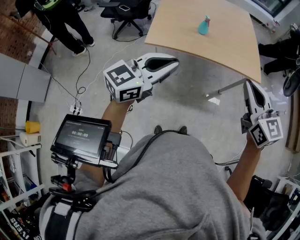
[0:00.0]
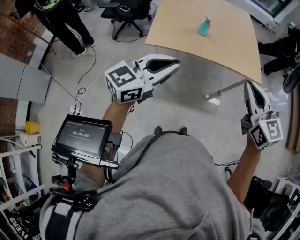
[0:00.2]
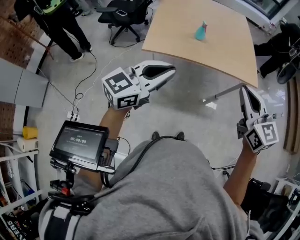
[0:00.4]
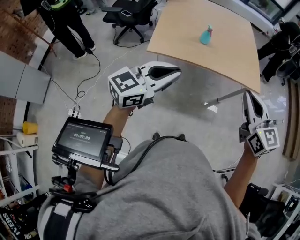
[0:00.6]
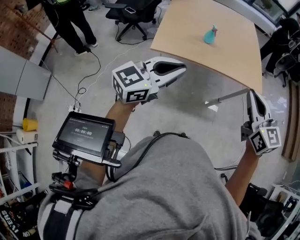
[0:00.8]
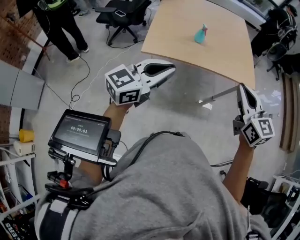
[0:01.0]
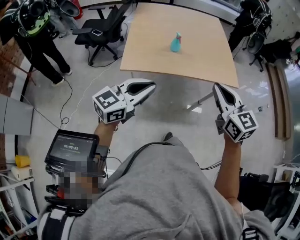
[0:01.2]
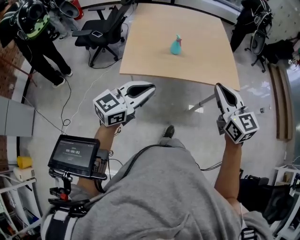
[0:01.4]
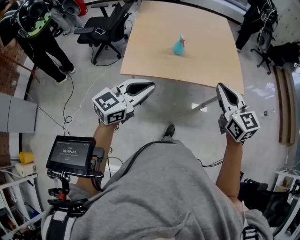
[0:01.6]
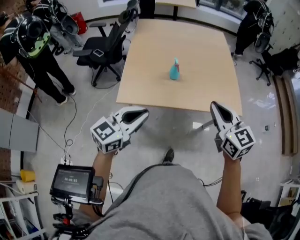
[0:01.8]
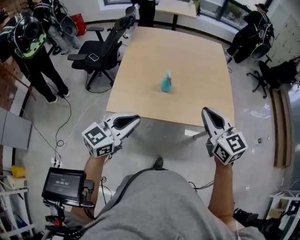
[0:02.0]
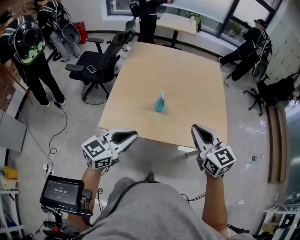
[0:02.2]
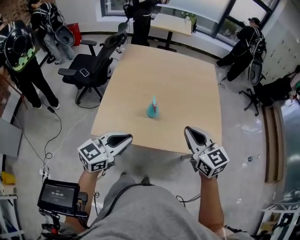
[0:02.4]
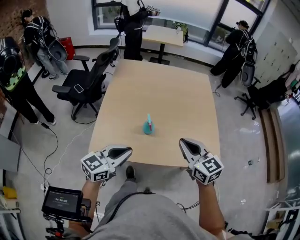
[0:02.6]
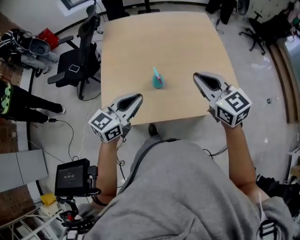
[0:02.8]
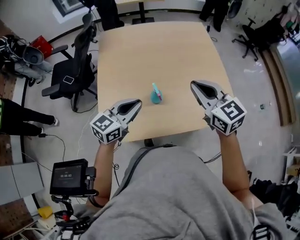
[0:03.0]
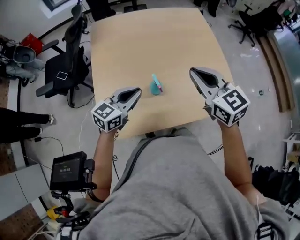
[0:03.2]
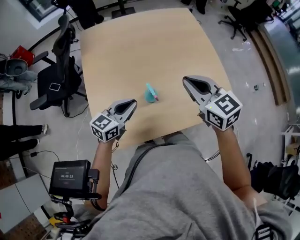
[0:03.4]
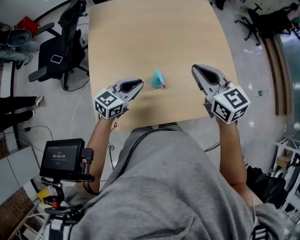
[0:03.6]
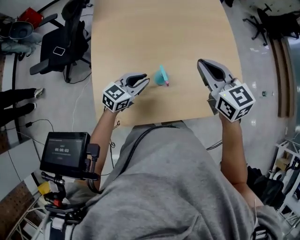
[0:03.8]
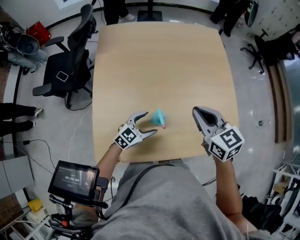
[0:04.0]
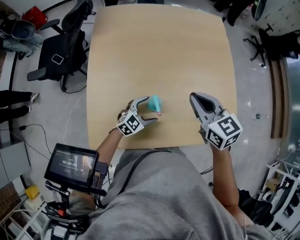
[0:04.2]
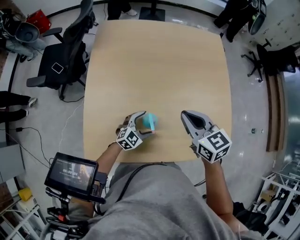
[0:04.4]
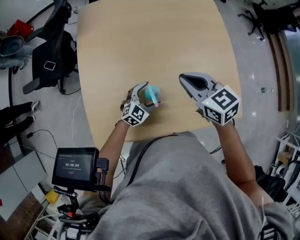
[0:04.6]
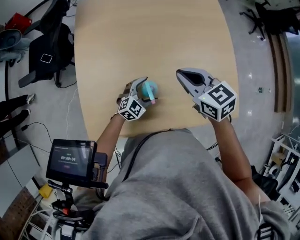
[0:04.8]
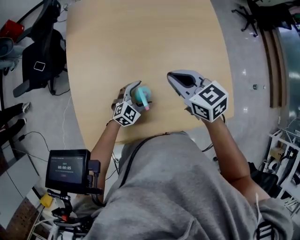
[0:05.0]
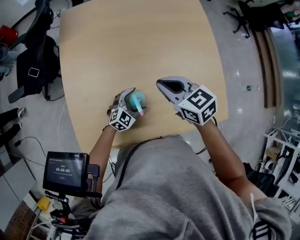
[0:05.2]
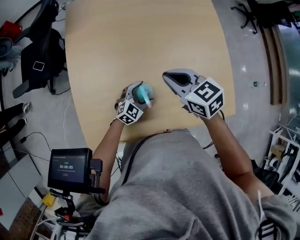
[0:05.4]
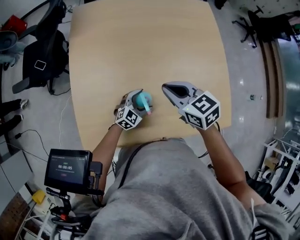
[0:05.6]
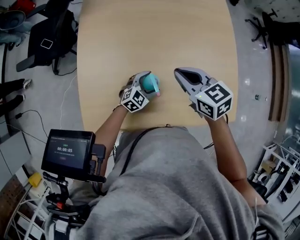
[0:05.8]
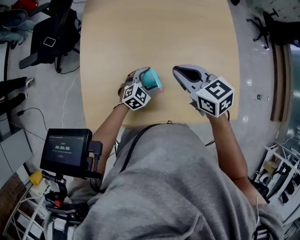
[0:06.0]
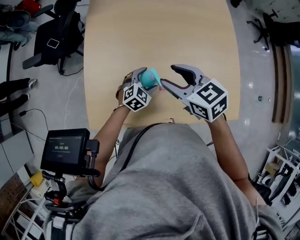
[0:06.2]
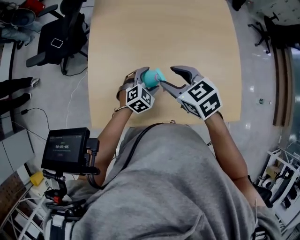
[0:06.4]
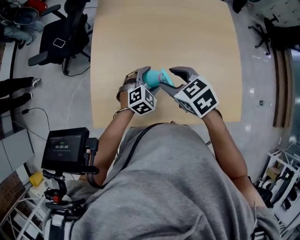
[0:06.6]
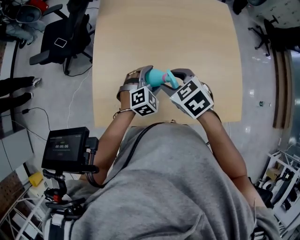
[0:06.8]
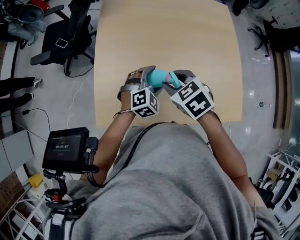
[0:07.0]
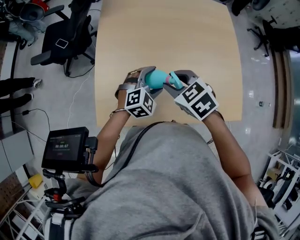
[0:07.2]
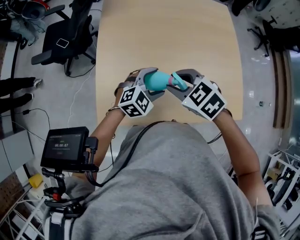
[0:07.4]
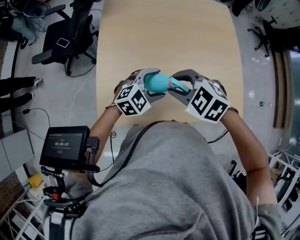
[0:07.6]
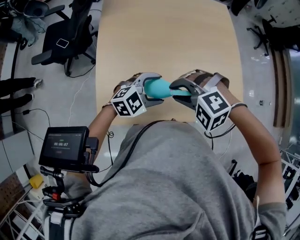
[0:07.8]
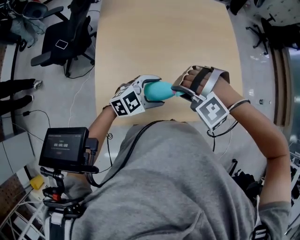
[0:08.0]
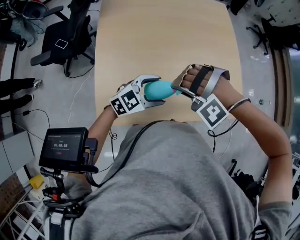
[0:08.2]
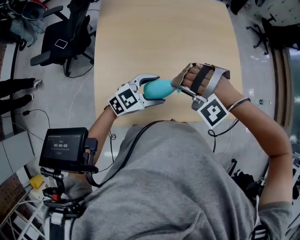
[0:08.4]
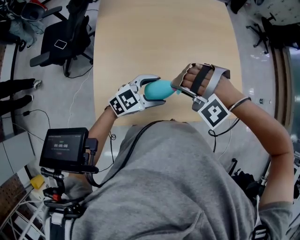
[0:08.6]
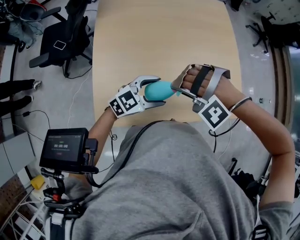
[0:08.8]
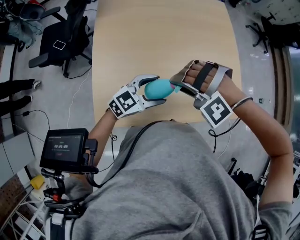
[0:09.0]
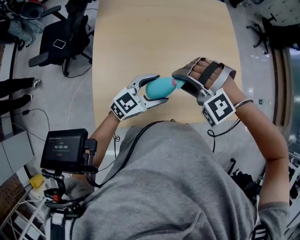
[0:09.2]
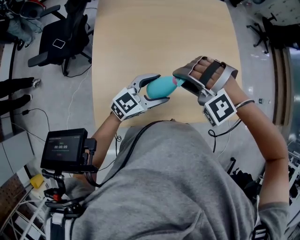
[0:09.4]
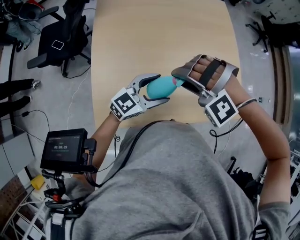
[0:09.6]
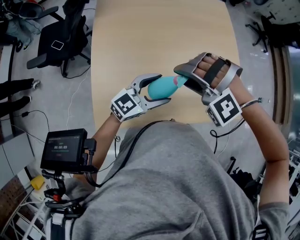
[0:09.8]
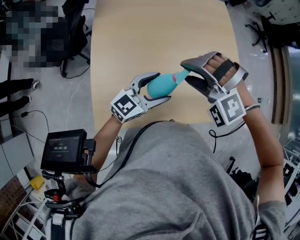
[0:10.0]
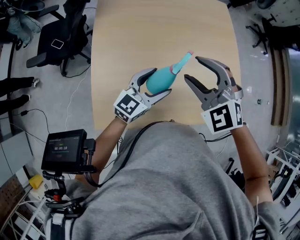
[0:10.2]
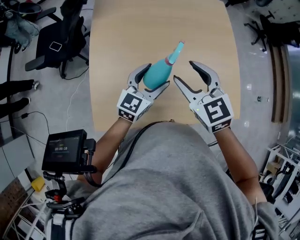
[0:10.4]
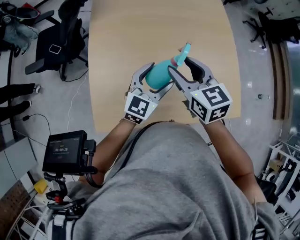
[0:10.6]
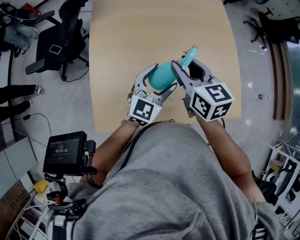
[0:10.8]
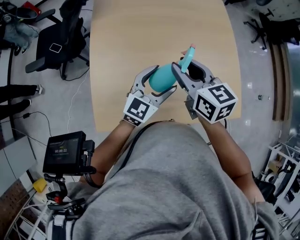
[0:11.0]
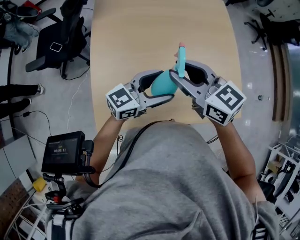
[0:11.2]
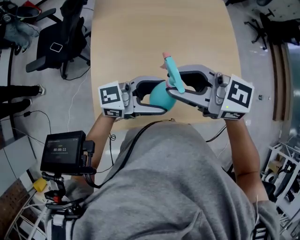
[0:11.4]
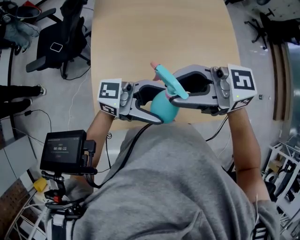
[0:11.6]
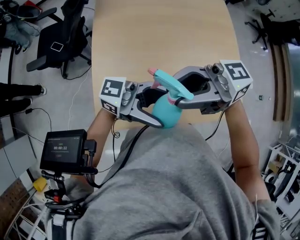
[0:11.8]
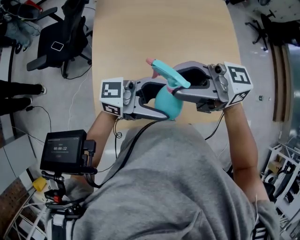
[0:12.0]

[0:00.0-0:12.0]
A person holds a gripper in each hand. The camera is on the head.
0.0 to 1.6 s: Both grippers travel together forward, some 15 cm.
1.6 to 3.0 s: Both grippers move forward, about 35 cm.
3.0 to 4.4 s: The right gripper shifts approximately 15 cm forward and downward. Meanwhile the left gripper moves downward and forward, about 30 cm, changes its angle by roughly 30 degrees, and opens its fingers.
4.4 to 6.0 s: The right gripper moves some 5 cm.
6.0 to 7.6 s: The right gripper shifts by some 10 cm, rotates some 40 degrees, and opens up. The left gripper heads upward, covering about 15 cm.
7.6 to 9.0 s: The right gripper rolls counterclockwise, seen from behind, by approximately 70 degrees, while the left gripper turns by about 20 degrees.
9.0 to 10.4 s: The right gripper moves upward and forward, about 10 cm, and twists some 90 degrees clockwise, seen from behind; the left gripper moves forward, about 5 cm, and rotates roughly 30 degrees.
10.4 to 12.0 s: Both grippers travel together upward, about 10 cm. The left gripper tilts its fingers approximately 30 degrees upward, while the right gripper points its fingers approximately 40 degrees further upward.

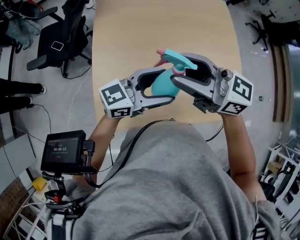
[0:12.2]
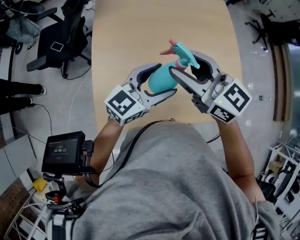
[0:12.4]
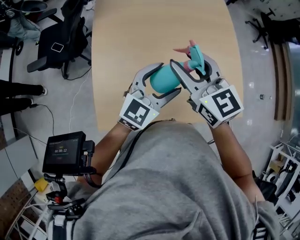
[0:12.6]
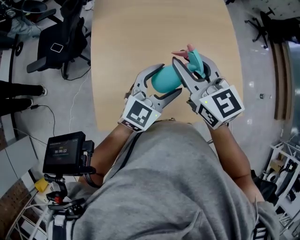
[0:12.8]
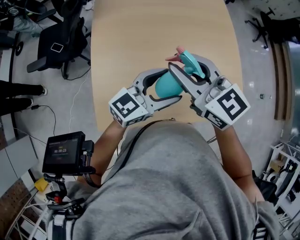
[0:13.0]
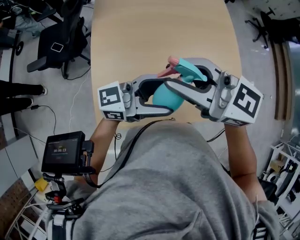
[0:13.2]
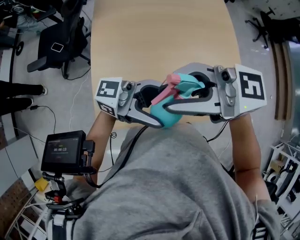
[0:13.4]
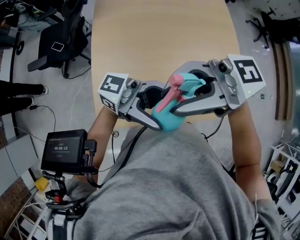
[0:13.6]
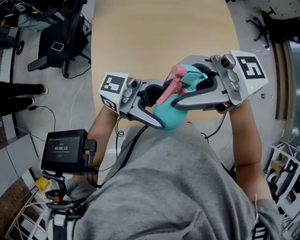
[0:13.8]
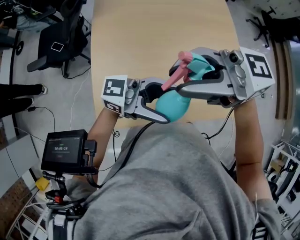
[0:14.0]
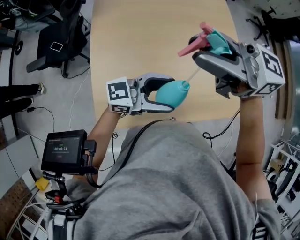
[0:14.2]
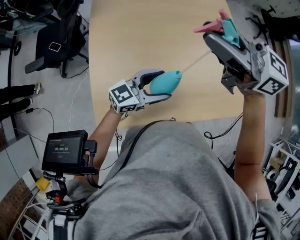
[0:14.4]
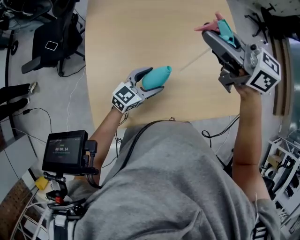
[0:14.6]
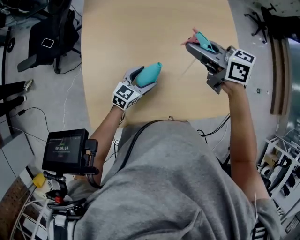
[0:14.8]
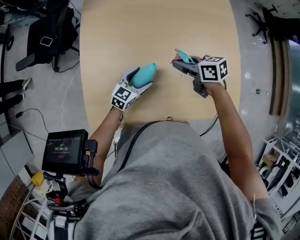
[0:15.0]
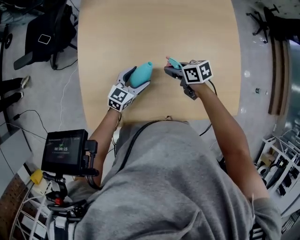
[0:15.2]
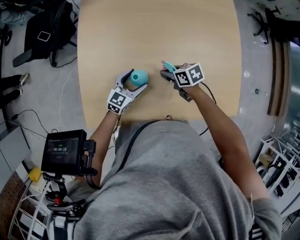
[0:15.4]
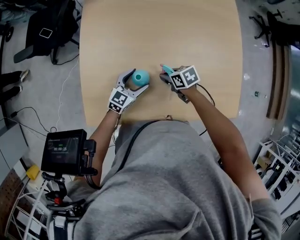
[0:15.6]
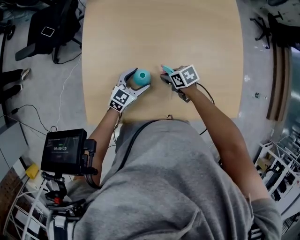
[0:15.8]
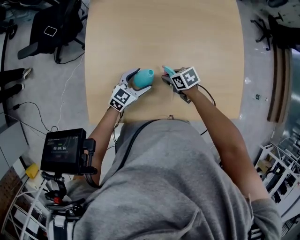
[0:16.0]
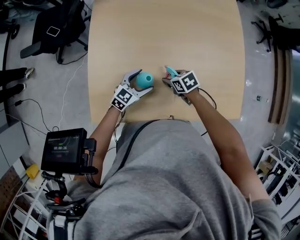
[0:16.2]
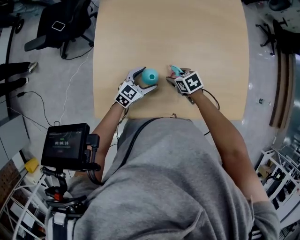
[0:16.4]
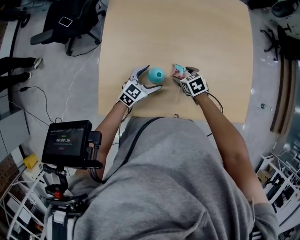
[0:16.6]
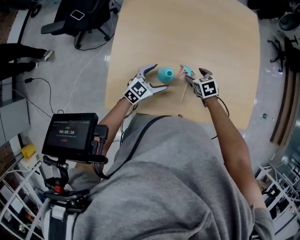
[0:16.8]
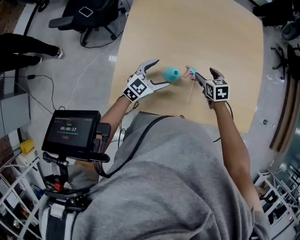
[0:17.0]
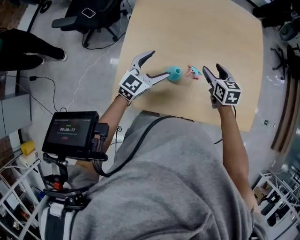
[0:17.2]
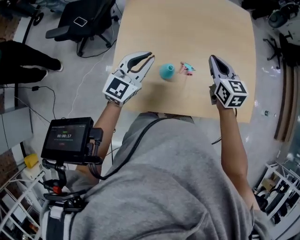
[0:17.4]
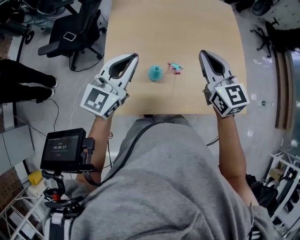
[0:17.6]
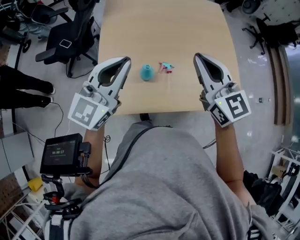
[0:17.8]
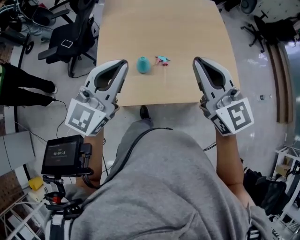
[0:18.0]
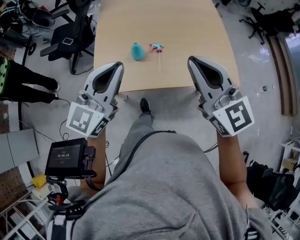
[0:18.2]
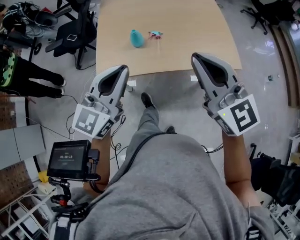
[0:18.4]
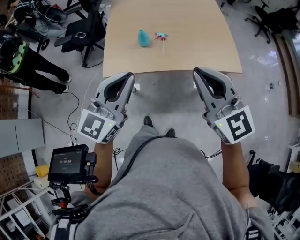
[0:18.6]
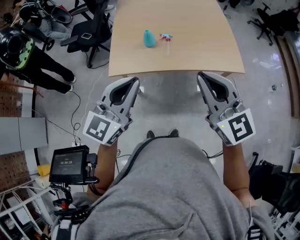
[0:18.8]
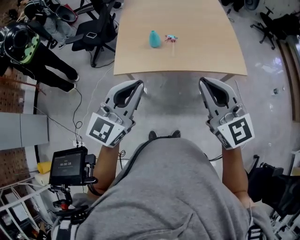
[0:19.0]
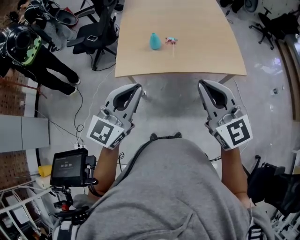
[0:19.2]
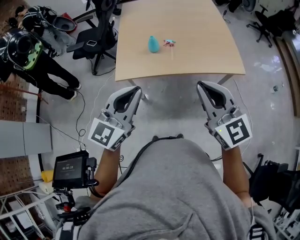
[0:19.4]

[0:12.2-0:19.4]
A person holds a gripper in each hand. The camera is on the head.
12.2 to 13.6 s: The right gripper shifts by approximately 10 cm, and changes its angle by roughly 40 degrees; the left gripper shifts by about 10 cm, and changes its angle by about 40 degrees.
13.6 to 15.0 s: The grippers both shift downward by approximately 30 cm. The right gripper points its fingers about 50 degrees further downward. Meanwhile the left gripper angles its fingers downward, by about 50 degrees.
15.0 to 16.6 s: The right gripper shifts approximately 15 cm downward, rotates some 30 degrees, and opens its fingers.
16.6 to 18.0 s: Both grippers move upward and backward, some 40 cm. The left gripper turns by approximately 30 degrees, and closes up; the right gripper angles its fingers upward, by about 60 degrees, and closes up.
18.0 to 19.4 s: The two grippers go approximately 30 cm backward.

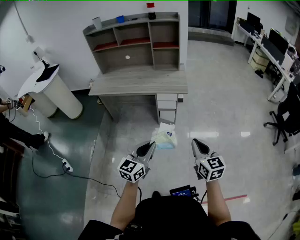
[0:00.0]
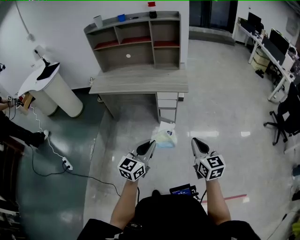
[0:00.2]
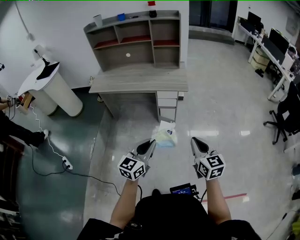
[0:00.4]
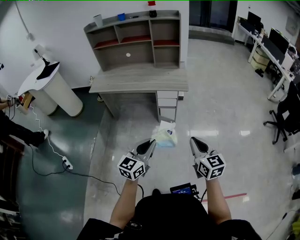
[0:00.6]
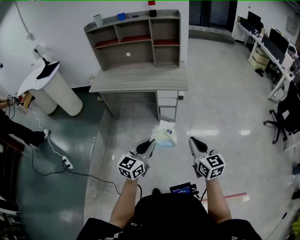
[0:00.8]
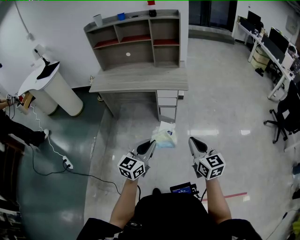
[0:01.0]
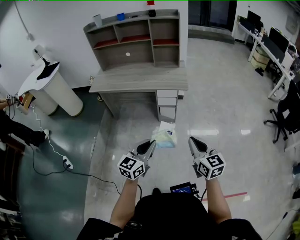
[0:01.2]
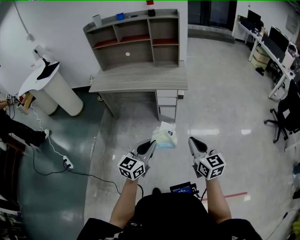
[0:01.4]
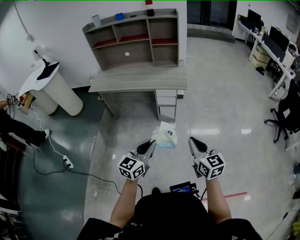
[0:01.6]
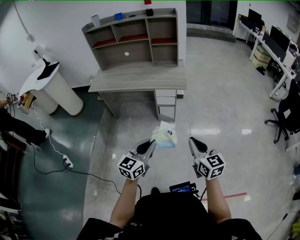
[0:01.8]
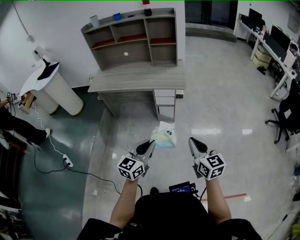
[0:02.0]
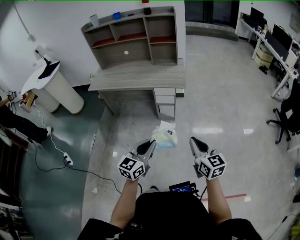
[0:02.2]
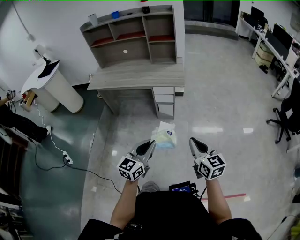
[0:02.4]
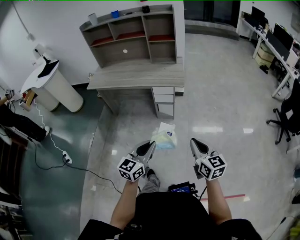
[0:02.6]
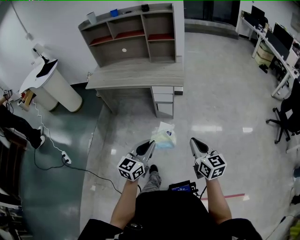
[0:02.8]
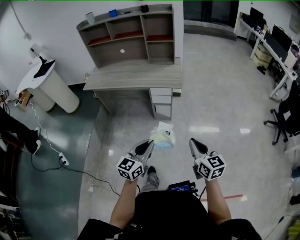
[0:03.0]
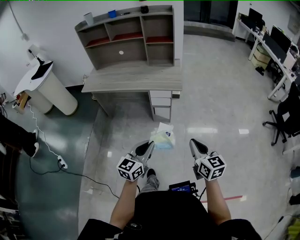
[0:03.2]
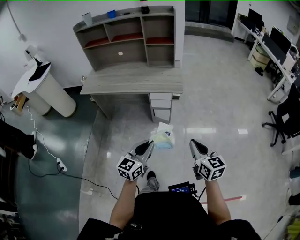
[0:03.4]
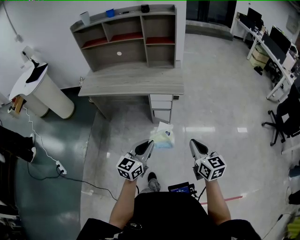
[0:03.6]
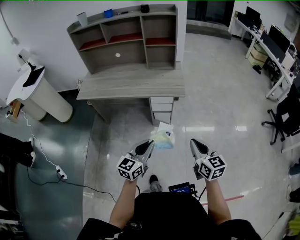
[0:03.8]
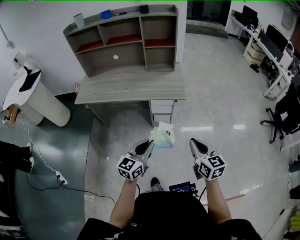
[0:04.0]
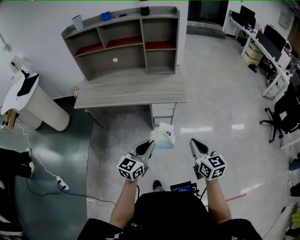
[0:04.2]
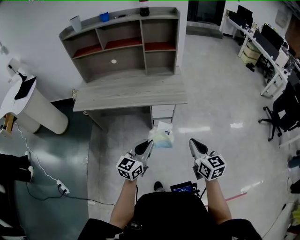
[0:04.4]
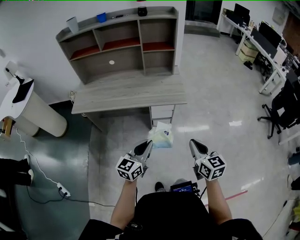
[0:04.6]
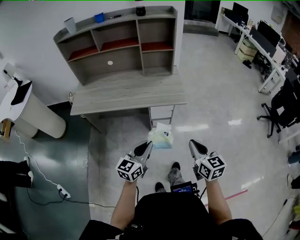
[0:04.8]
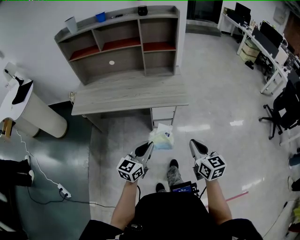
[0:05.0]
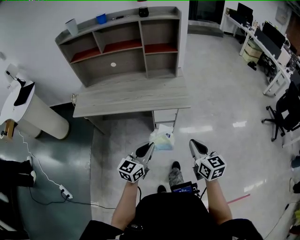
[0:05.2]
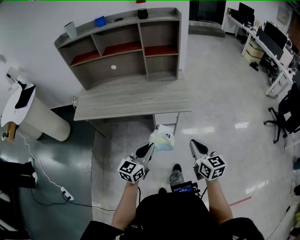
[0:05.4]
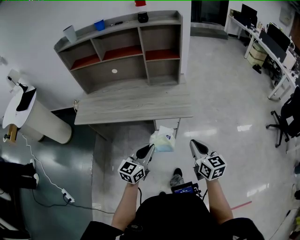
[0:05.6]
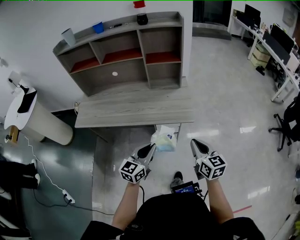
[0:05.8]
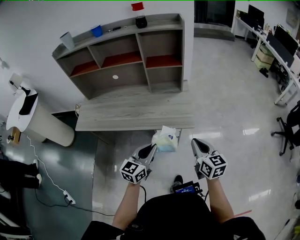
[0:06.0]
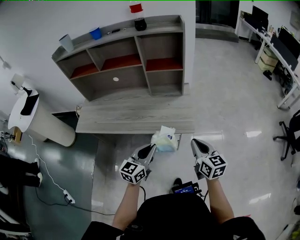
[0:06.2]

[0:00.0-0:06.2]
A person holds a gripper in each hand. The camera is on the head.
0.0 to 1.6 s: The grippers make only small movements.
1.6 to 3.2 s: The right gripper is displaced to the right by approximately 5 cm. Meanwhile the left gripper shifts by some 5 cm.
3.2 to 4.6 s: Both grippers move forward and to the left, about 20 cm.
4.6 to 6.2 s: The two grippers go roughly 20 cm forward.
